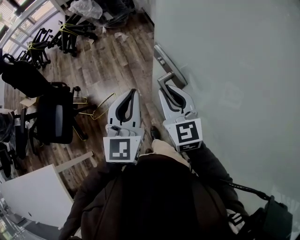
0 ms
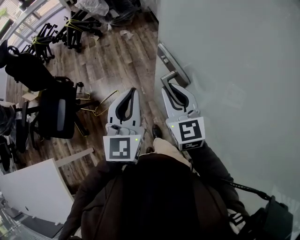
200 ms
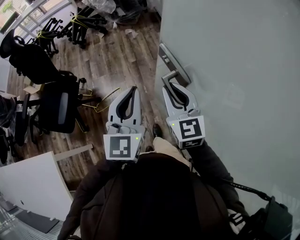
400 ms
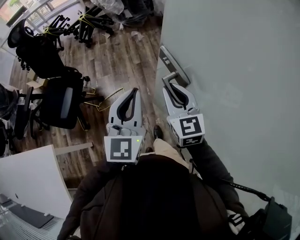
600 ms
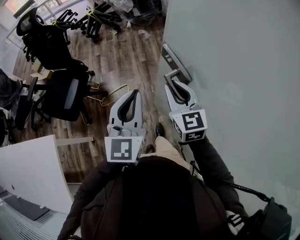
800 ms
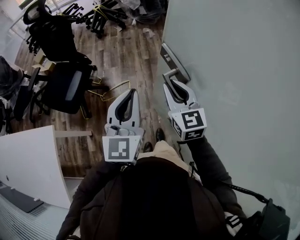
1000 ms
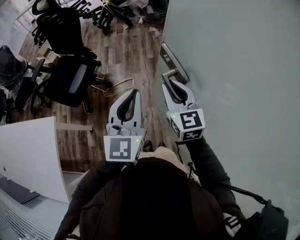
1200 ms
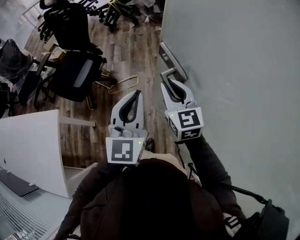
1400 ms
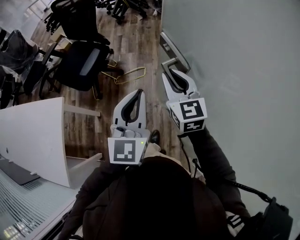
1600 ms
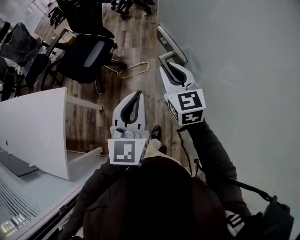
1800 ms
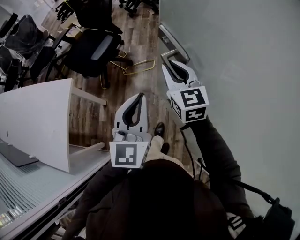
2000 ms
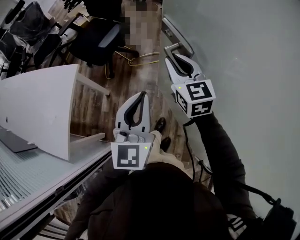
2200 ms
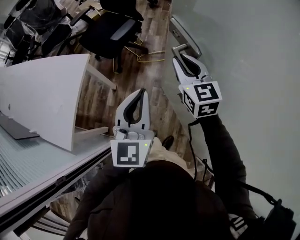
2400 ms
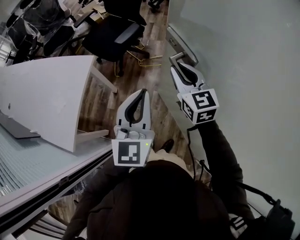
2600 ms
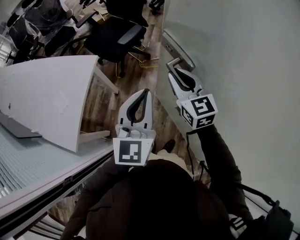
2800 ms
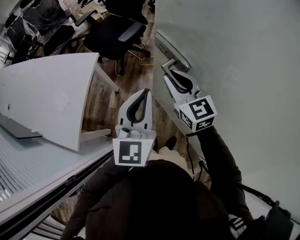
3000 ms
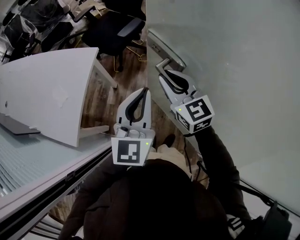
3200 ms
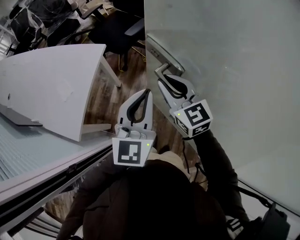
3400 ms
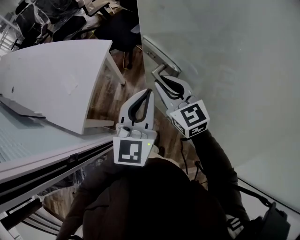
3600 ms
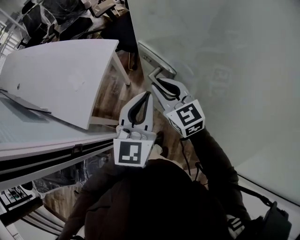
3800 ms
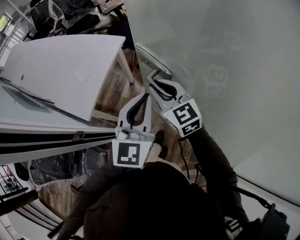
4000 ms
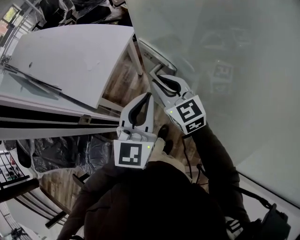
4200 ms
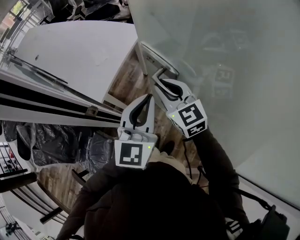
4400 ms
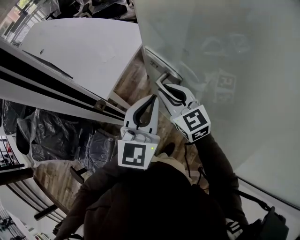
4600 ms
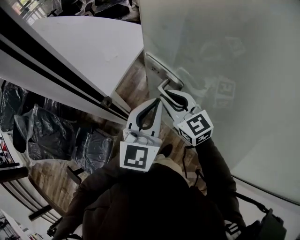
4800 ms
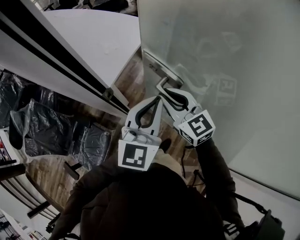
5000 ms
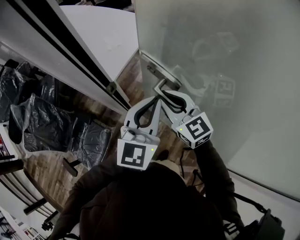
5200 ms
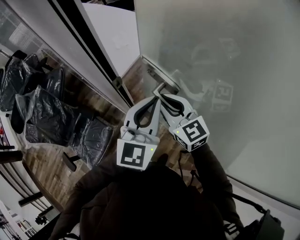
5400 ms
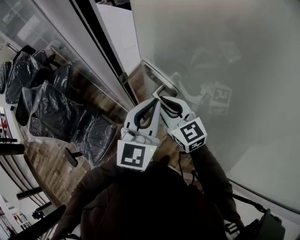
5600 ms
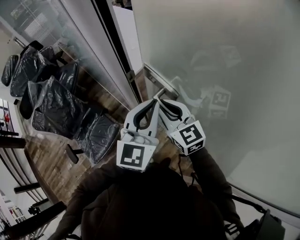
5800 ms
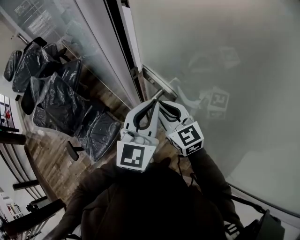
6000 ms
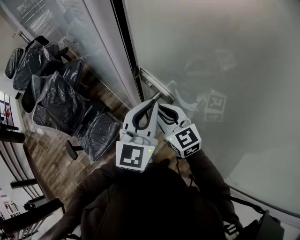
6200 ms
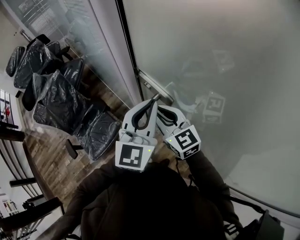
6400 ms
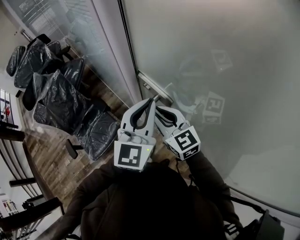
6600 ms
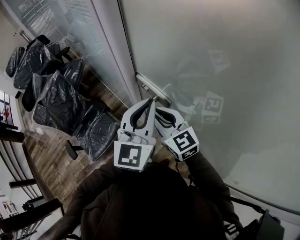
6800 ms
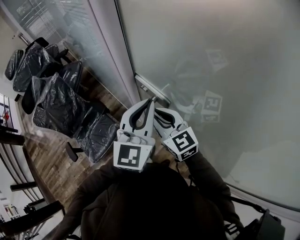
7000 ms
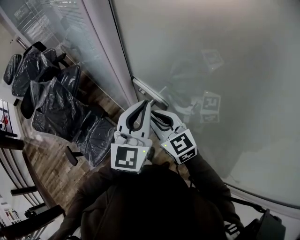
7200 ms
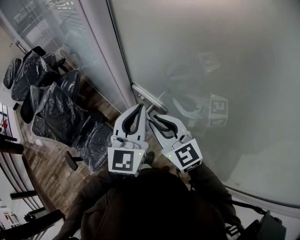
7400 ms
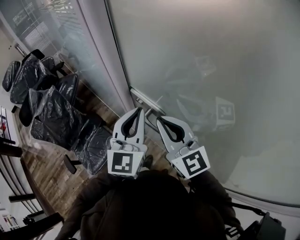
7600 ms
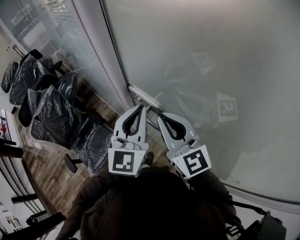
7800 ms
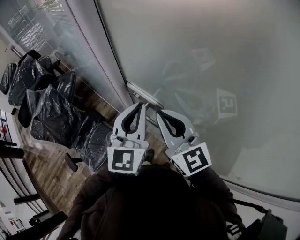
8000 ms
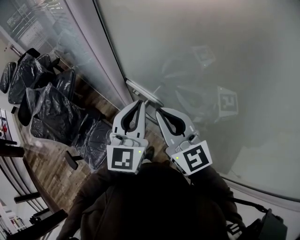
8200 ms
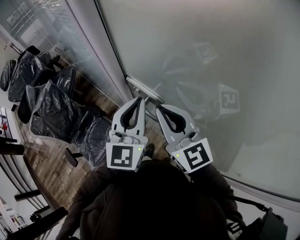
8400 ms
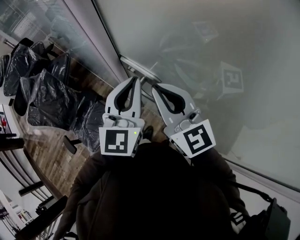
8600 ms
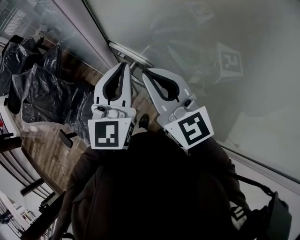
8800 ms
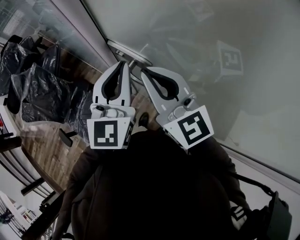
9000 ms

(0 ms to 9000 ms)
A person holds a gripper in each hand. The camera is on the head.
0 ms - 1600 ms: The left gripper shifts about 30 cm backward and to the left, and rotates some 20 degrees; the right gripper heads to the left and backward, covering approximately 25 cm.
1600 ms - 3000 ms: Both grippers move to the left and backward, roughly 20 cm. The right gripper rotates approximately 20 degrees.
3000 ms - 4400 ms: The right gripper shifts approximately 30 cm to the left and backward, and swivels roughly 20 degrees, while the left gripper moves backward and to the left, about 25 cm.
4400 ms - 6000 ms: Both grippers move to the left and backward, some 20 cm.
6000 ms - 7600 ms: The right gripper is displaced upward by roughly 10 cm.
7600 ms - 9000 ms: The grippers move only a little.

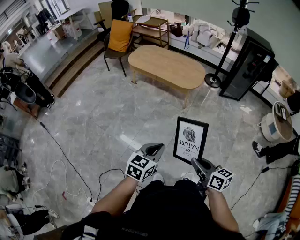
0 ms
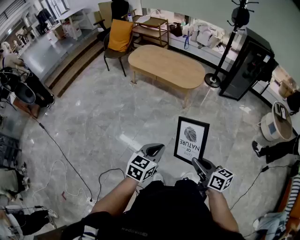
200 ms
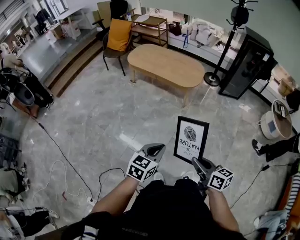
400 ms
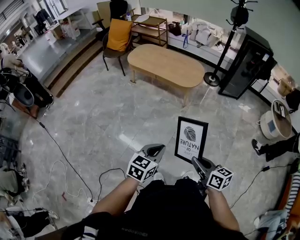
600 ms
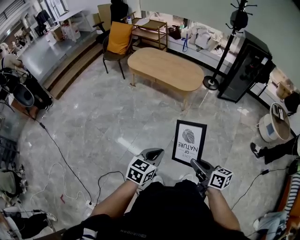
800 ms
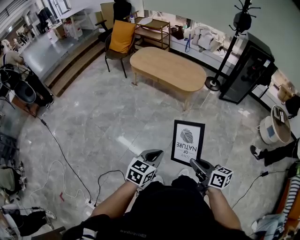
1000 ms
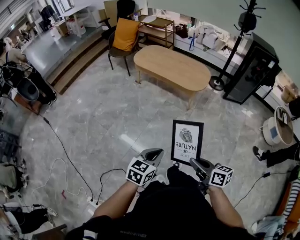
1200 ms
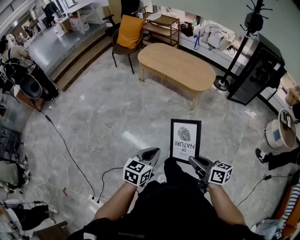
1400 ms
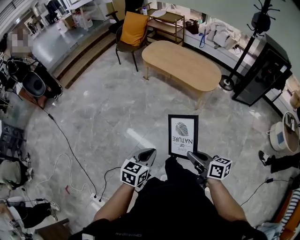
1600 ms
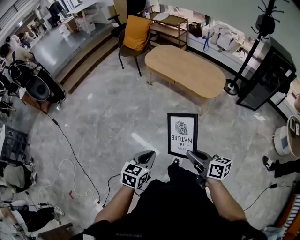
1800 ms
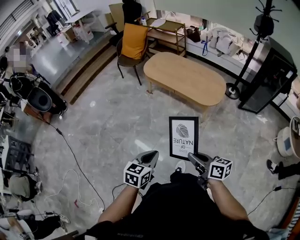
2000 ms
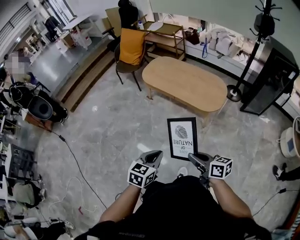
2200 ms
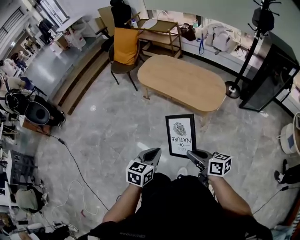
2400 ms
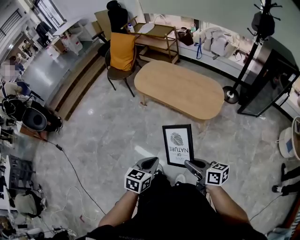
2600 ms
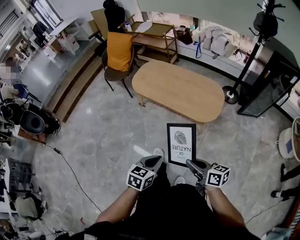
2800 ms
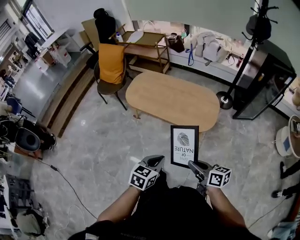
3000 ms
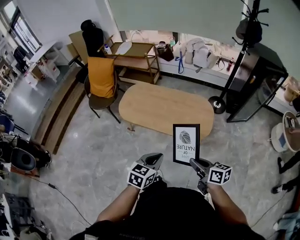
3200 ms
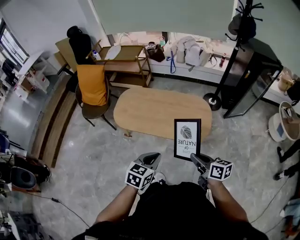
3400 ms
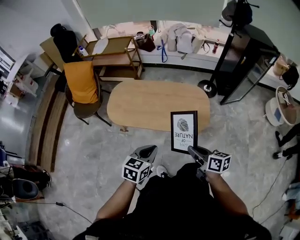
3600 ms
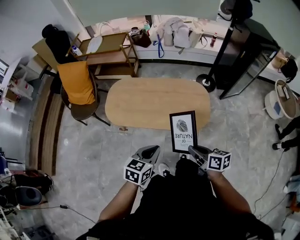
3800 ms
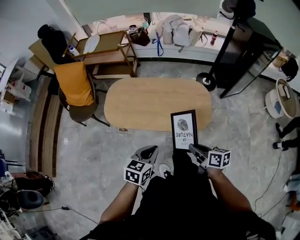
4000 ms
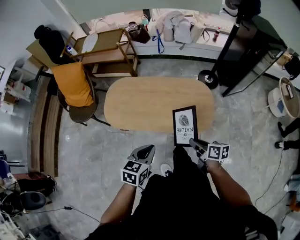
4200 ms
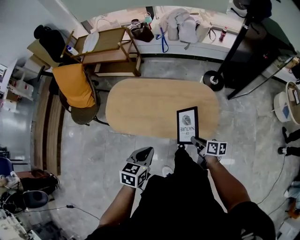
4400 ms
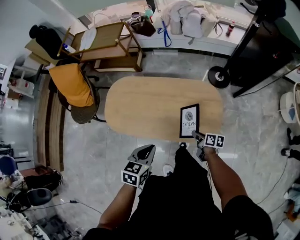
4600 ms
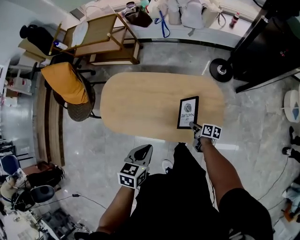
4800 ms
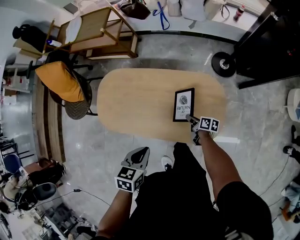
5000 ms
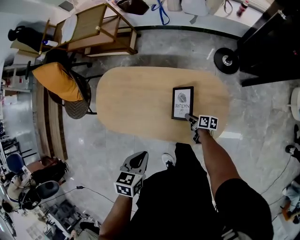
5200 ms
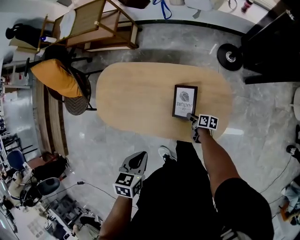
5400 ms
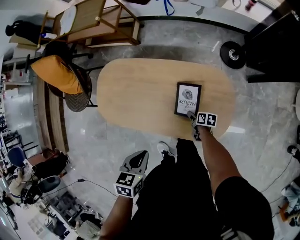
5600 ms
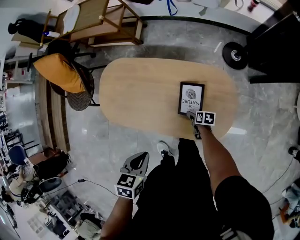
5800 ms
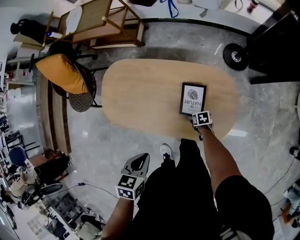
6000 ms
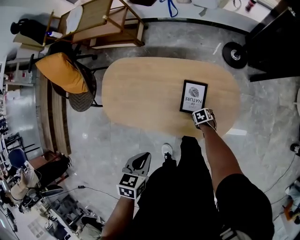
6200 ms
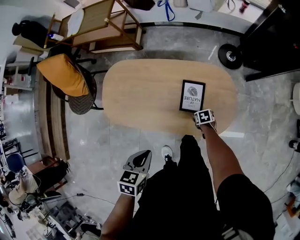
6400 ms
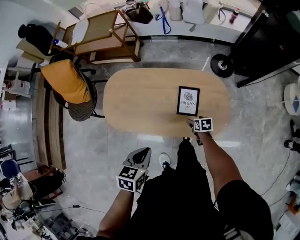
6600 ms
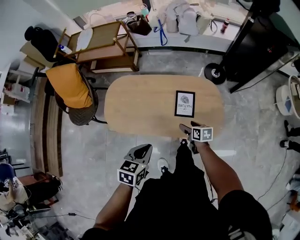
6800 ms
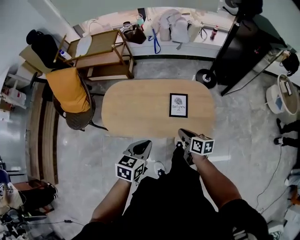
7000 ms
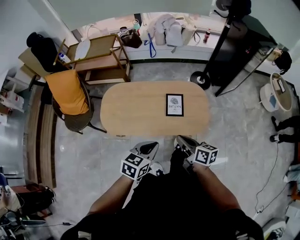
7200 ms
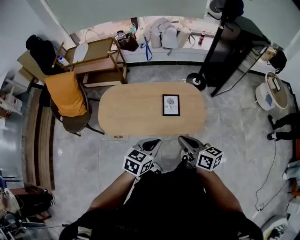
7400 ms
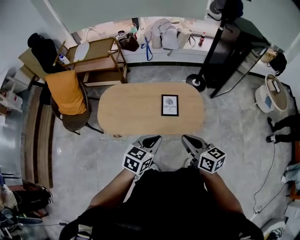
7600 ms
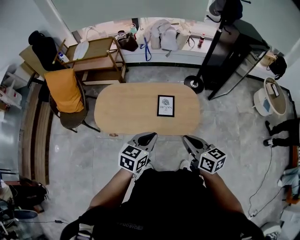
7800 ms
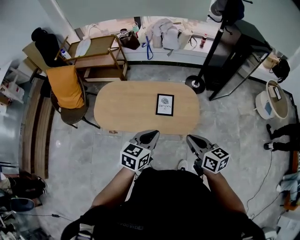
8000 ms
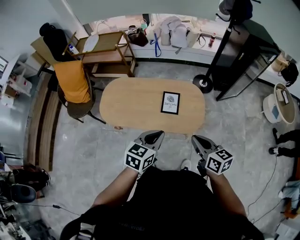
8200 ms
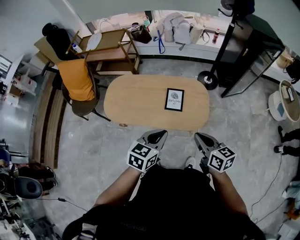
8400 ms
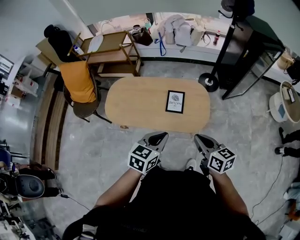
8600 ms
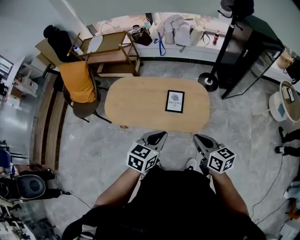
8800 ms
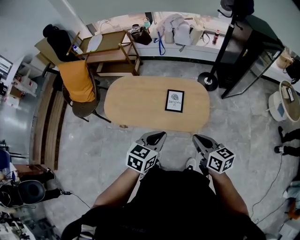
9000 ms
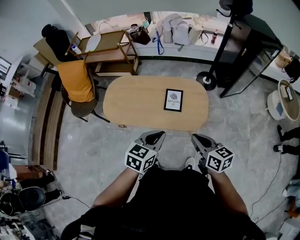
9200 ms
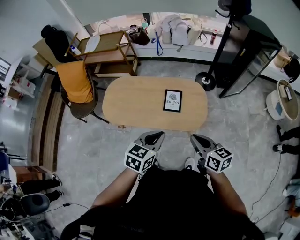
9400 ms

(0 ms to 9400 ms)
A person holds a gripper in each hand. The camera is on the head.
0 ms - 1600 ms: The right gripper heads to the left and forward, covering roughly 15 cm. Meanwhile the left gripper shifts about 10 cm to the left.
1600 ms - 3200 ms: The pair of grippers is taken forward, approximately 50 cm. The left gripper swivels some 20 degrees.
3200 ms - 4800 ms: The left gripper is displaced forward by about 35 cm. The right gripper travels forward and downward by some 50 cm, and rotates approximately 40 degrees.
4800 ms - 6200 ms: The right gripper shifts about 15 cm downward, points its fingers some 40 degrees further downward, and opens up. Meanwhile the left gripper moves roughly 5 cm.
6200 ms - 7800 ms: The right gripper travels upward by approximately 60 cm, tips its fingers upward by roughly 60 degrees, and closes up. The left gripper shifts approximately 15 cm upward, and tips its fingers upward by some 30 degrees.
7800 ms - 9400 ms: The two grippers go roughly 5 cm to the right.

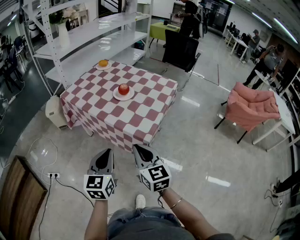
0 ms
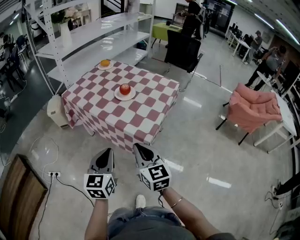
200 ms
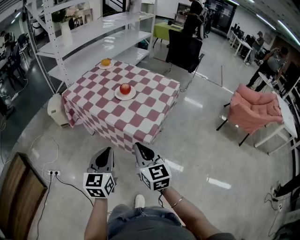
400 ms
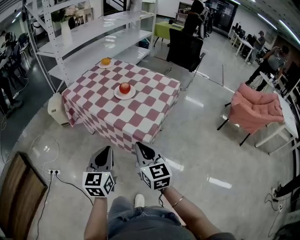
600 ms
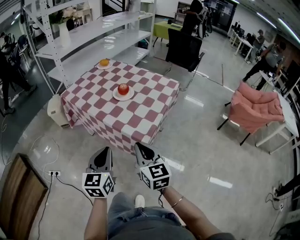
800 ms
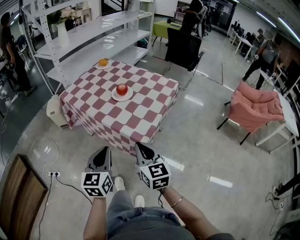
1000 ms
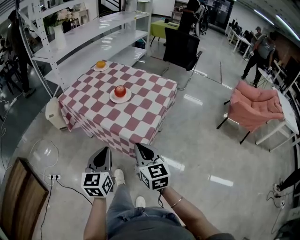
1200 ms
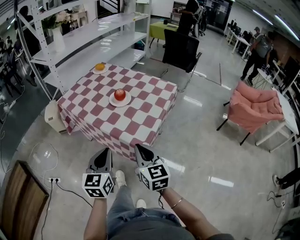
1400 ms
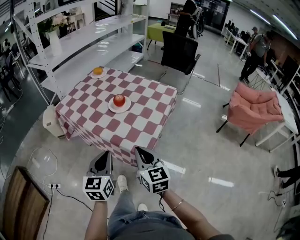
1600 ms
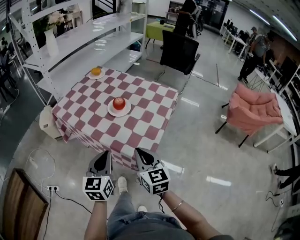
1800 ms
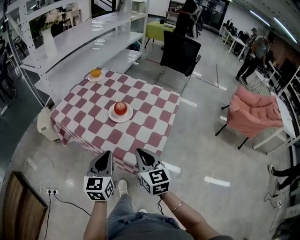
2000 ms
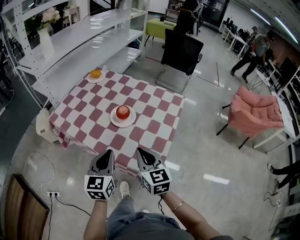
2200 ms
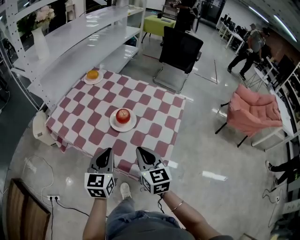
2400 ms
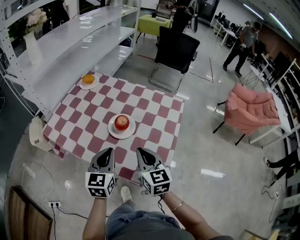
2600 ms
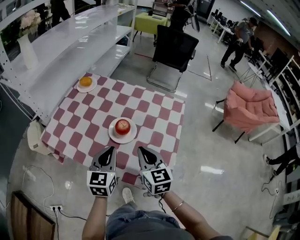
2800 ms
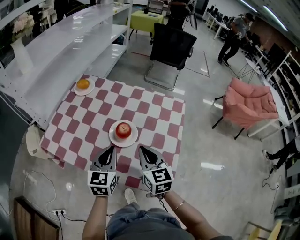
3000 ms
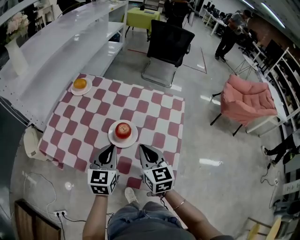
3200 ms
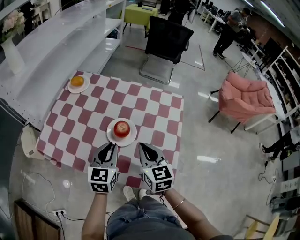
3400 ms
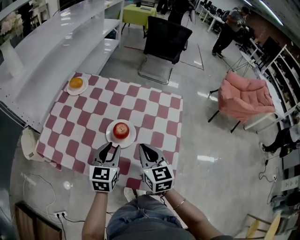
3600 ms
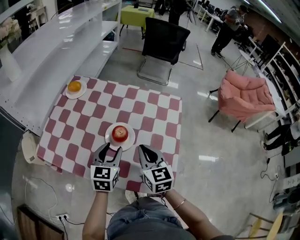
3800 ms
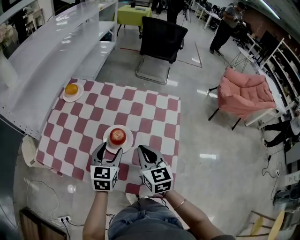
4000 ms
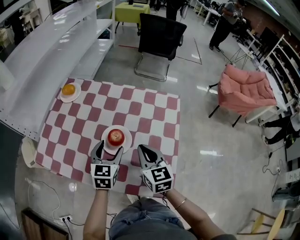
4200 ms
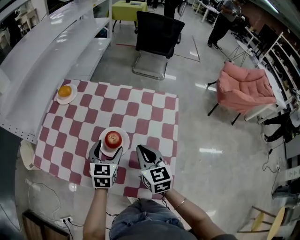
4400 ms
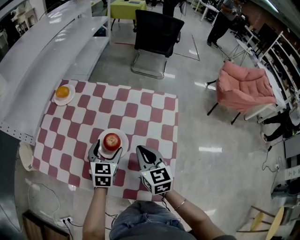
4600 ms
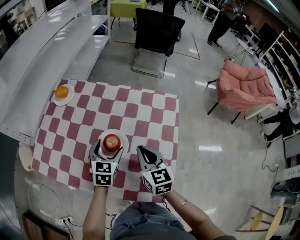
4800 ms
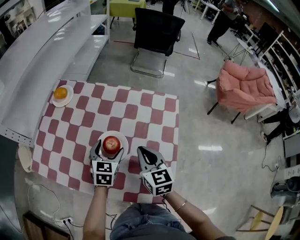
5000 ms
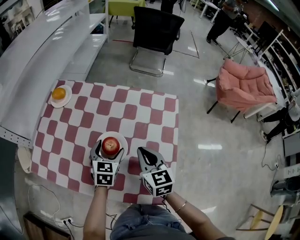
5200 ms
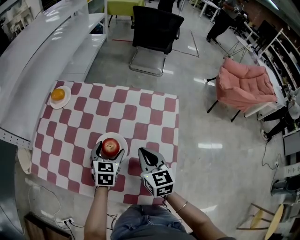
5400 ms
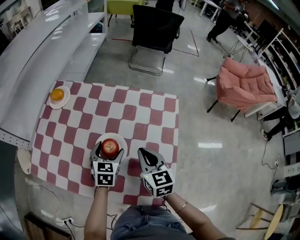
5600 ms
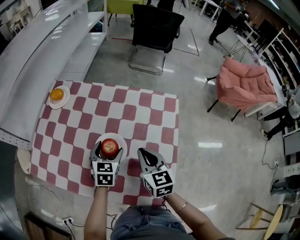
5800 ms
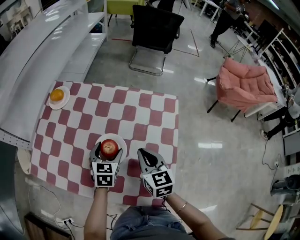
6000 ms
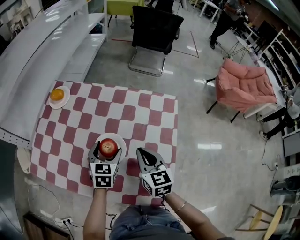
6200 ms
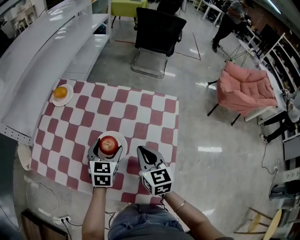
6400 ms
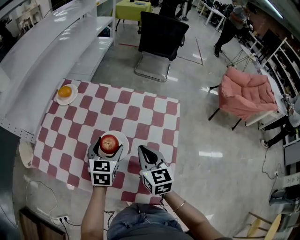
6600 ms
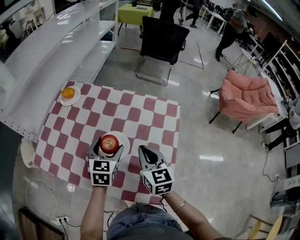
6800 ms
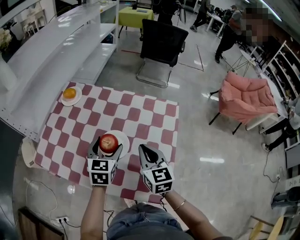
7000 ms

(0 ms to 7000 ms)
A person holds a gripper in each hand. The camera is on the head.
0 ms - 1400 ms: The grippers both shift forward by about 5 cm.
1400 ms - 2800 ms: Both grippers travel together forward, some 30 cm.
2800 ms - 4200 ms: The left gripper goes approximately 10 cm forward and downward, and opens. Meanwhile the right gripper moves forward, approximately 5 cm.
4200 ms - 5600 ms: The right gripper shifts by roughly 5 cm; the left gripper travels downward and forward by approximately 10 cm.
5600 ms - 7000 ms: The right gripper heads upward, covering approximately 5 cm; the left gripper moves upward, approximately 10 cm.
